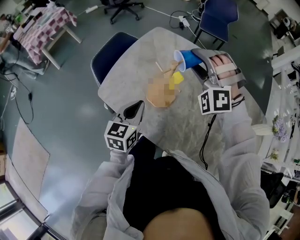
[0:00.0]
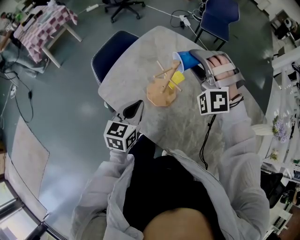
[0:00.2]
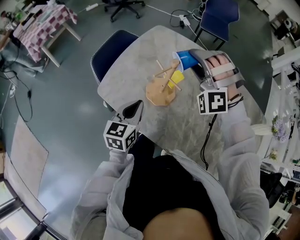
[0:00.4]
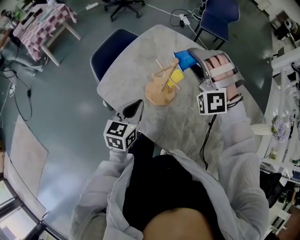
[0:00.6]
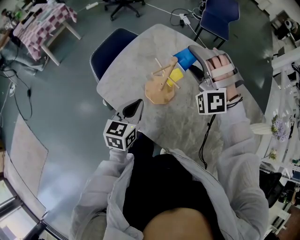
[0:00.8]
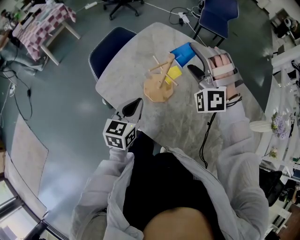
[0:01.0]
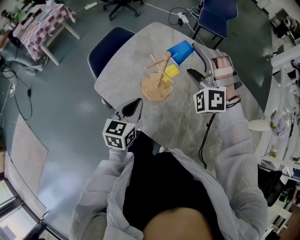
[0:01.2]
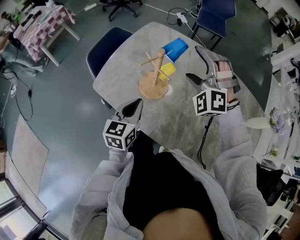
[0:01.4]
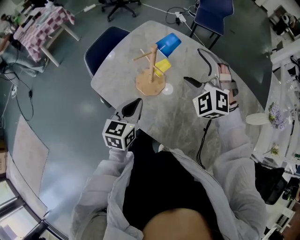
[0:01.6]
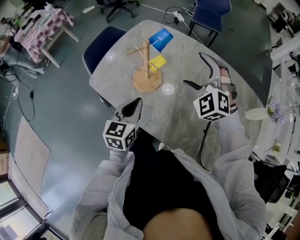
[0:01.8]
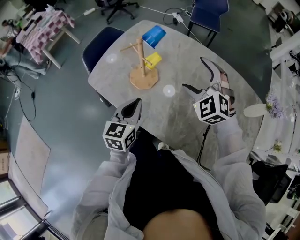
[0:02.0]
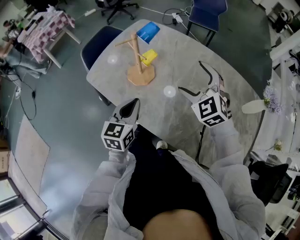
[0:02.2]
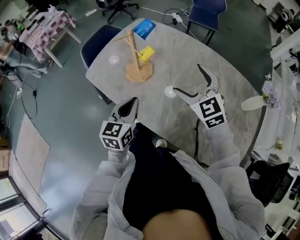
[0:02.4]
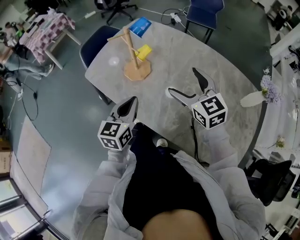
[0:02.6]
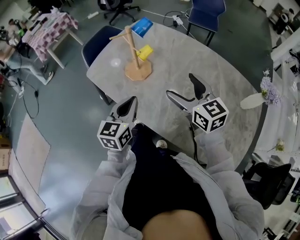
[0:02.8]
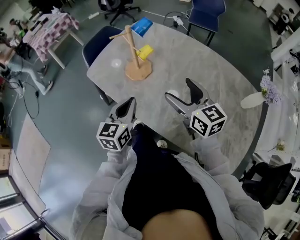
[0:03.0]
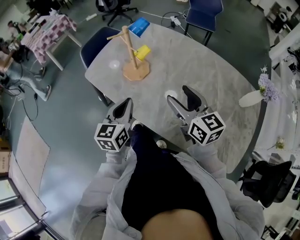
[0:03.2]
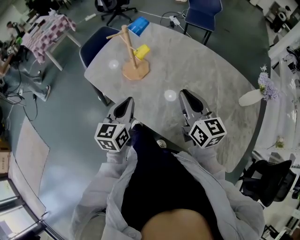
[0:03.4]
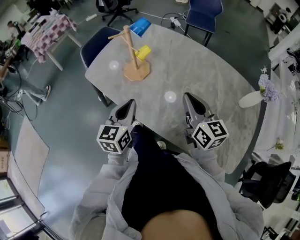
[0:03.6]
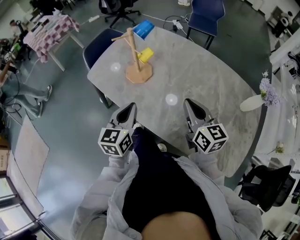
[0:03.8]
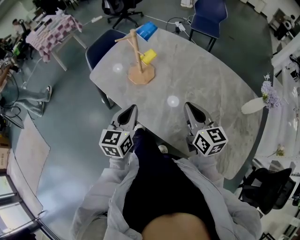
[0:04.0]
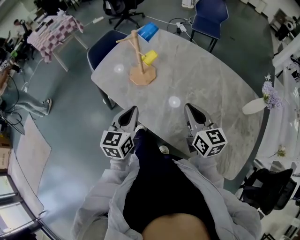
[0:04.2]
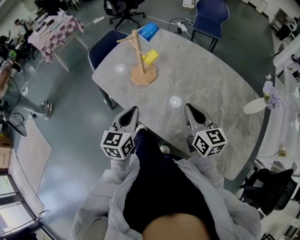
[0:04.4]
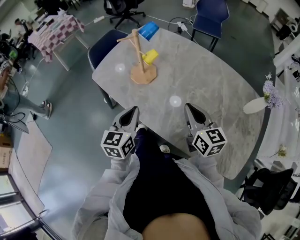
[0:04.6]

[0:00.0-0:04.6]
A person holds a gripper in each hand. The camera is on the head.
0:00.0 to 0:01.6: The left gripper heads to the right, covering about 5 cm, while the right gripper shifts about 10 cm to the right and backward, swivels approximately 30 degrees, and opens.
0:01.6 to 0:03.0: The left gripper moves backward and to the right, some 15 cm, while the right gripper travels backward by some 20 cm, and twists about 70 degrees clockwise, seen from behind.
0:03.0 to 0:04.6: The right gripper moves some 5 cm, and closes its fingers.

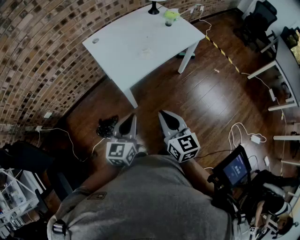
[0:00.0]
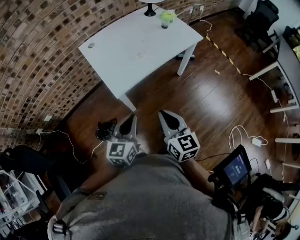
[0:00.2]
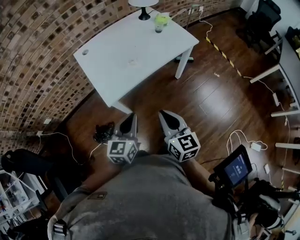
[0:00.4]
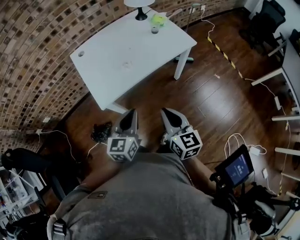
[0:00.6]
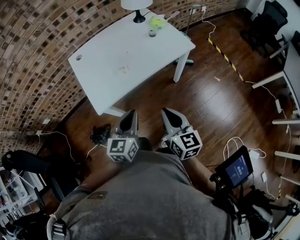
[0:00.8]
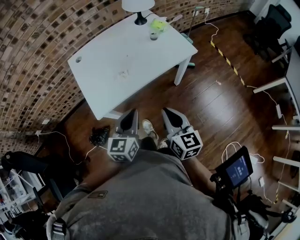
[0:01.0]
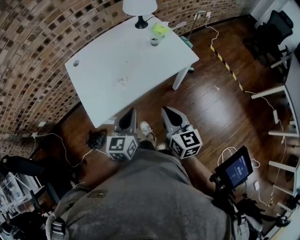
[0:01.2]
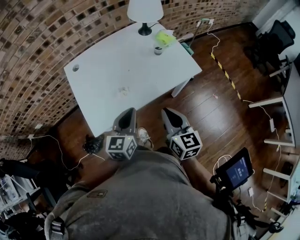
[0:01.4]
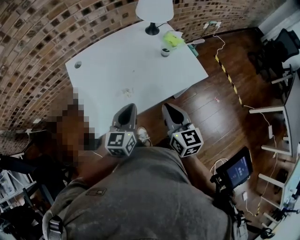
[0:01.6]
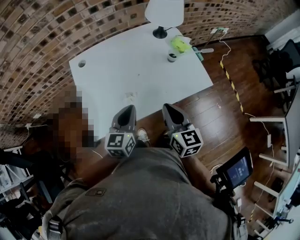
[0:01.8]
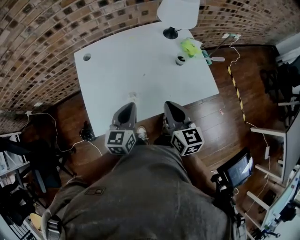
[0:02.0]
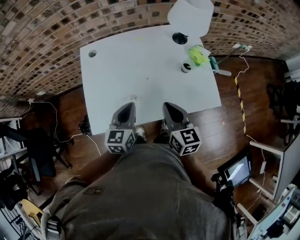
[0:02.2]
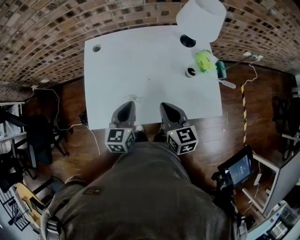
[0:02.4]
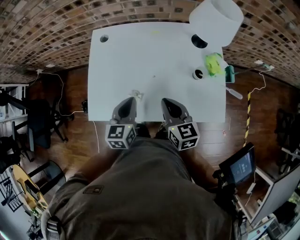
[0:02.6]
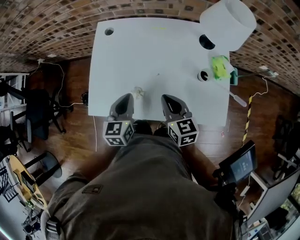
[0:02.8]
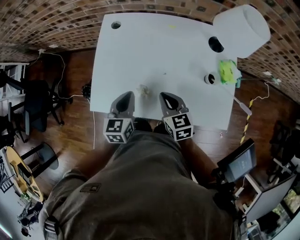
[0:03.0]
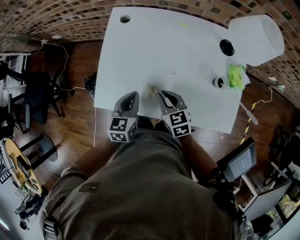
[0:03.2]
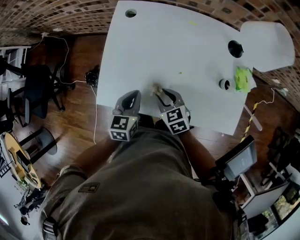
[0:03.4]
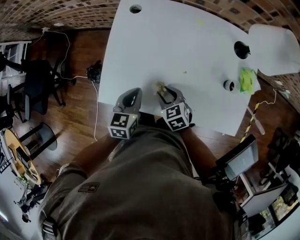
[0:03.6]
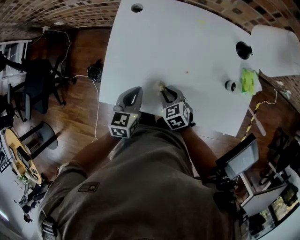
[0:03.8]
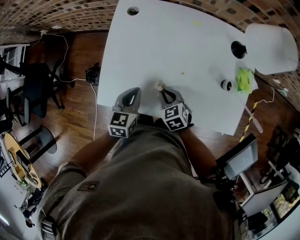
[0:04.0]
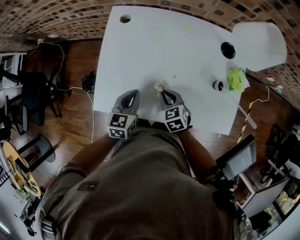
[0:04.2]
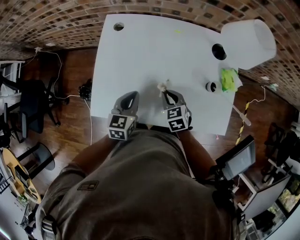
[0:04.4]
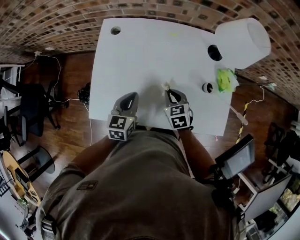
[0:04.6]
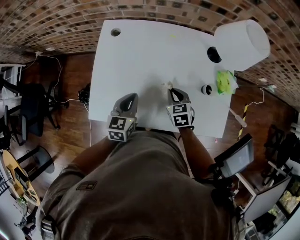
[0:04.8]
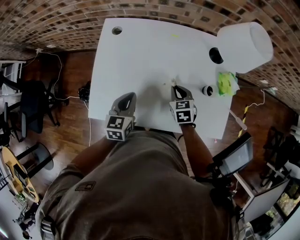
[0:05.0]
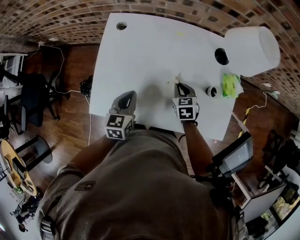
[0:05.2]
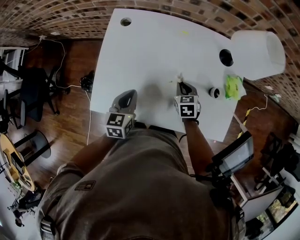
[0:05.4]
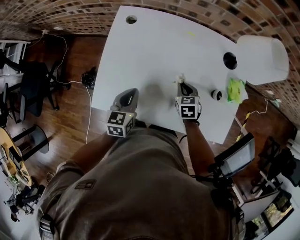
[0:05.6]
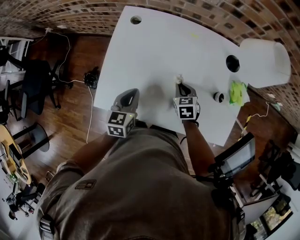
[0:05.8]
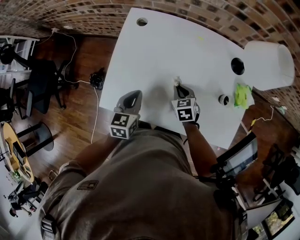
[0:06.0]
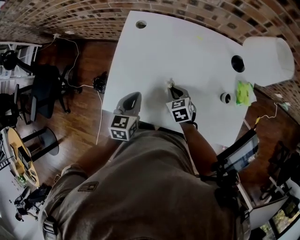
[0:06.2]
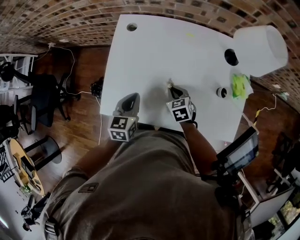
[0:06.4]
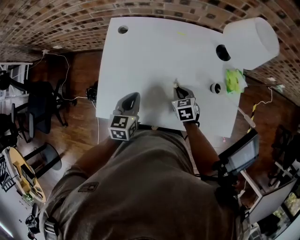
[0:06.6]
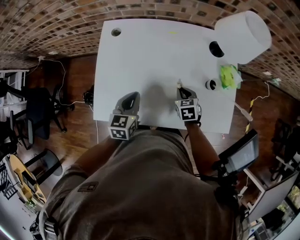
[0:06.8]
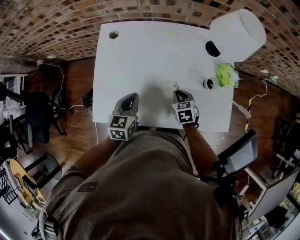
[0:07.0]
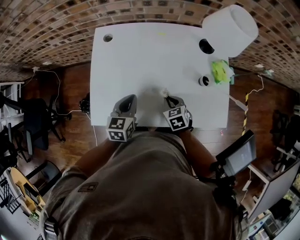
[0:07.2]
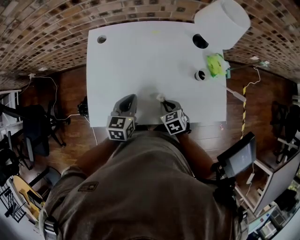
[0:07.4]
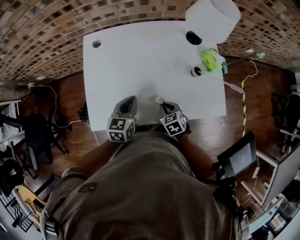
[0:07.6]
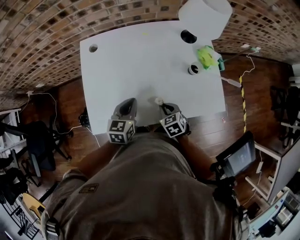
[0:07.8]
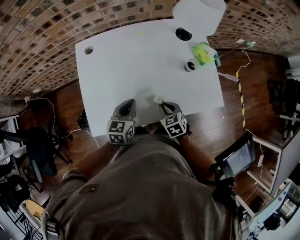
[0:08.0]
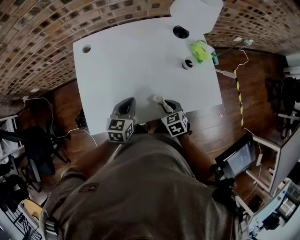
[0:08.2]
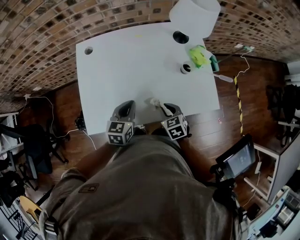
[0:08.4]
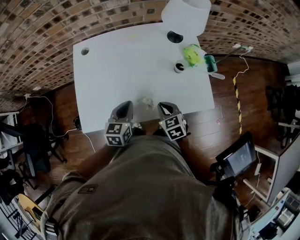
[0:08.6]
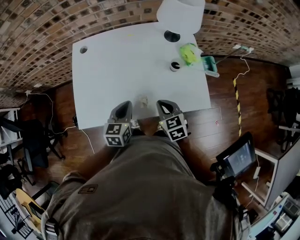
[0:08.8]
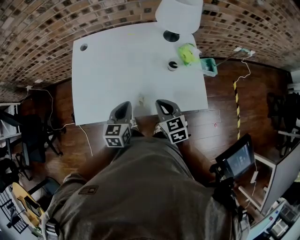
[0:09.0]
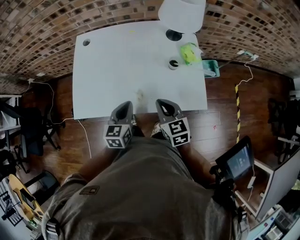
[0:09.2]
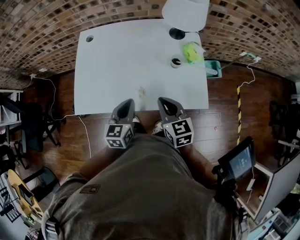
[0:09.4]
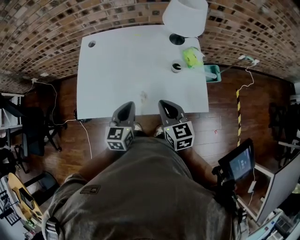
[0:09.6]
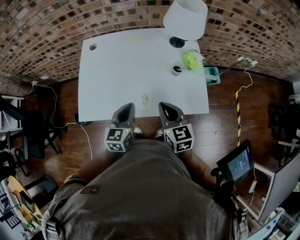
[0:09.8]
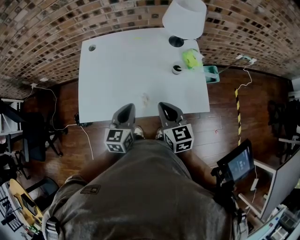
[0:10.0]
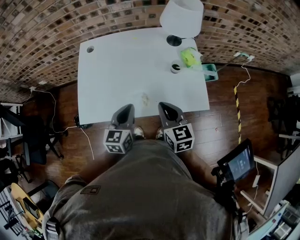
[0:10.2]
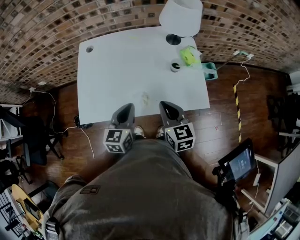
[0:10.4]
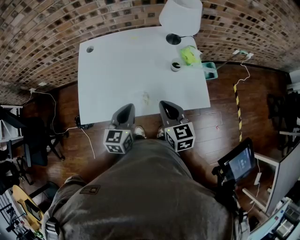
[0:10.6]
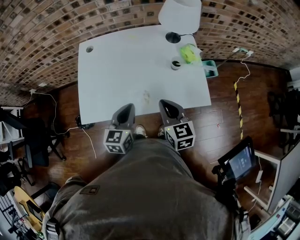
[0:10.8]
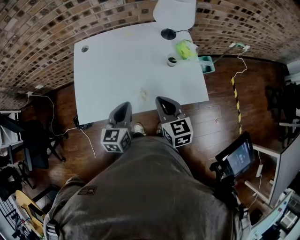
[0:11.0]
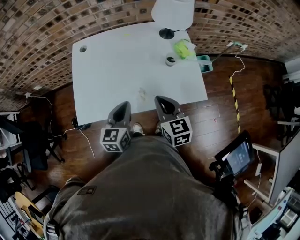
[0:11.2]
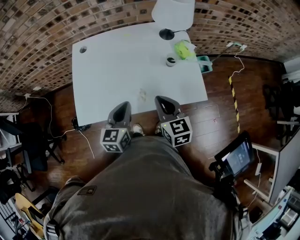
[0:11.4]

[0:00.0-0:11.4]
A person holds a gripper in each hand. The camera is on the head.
0:00.0 to 0:01.4: The two grippers go about 35 cm forward and to the right.
0:01.4 to 0:02.8: The right gripper shifts by some 25 cm, and rotates roughly 40 degrees, while the left gripper shifts by approximately 15 cm, and changes its angle by some 40 degrees.
0:02.8 to 0:04.2: The right gripper shifts some 15 cm downward and to the left, turns by roughly 30 degrees, and opens, then closes once more, while the left gripper goes roughly 5 cm downward.
0:04.2 to 0:05.6: The right gripper travels to the right and forward by roughly 10 cm.
0:05.6 to 0:07.2: The right gripper swings left and right, approximately 10 cm each way, with 2 reversals.
0:07.2 to 0:08.6: The right gripper heads backward, upward and to the right, covering roughly 10 cm, while the left gripper shifts some 5 cm to the right.
0:08.6 to 0:10.0: The right gripper is displaced upward by about 15 cm, and rotates about 20 degrees. Meanwhile the left gripper moves upward and backward, some 10 cm.
0:10.0 to 0:11.4: There are only small adjustments of the grippers.

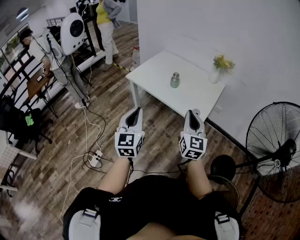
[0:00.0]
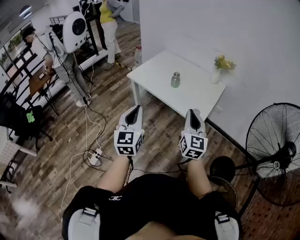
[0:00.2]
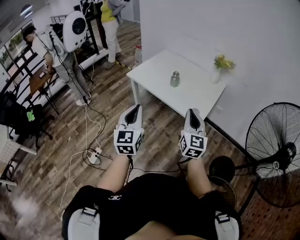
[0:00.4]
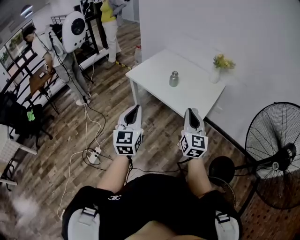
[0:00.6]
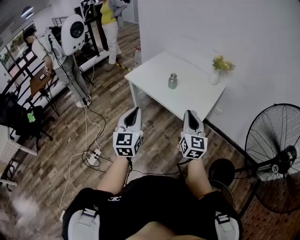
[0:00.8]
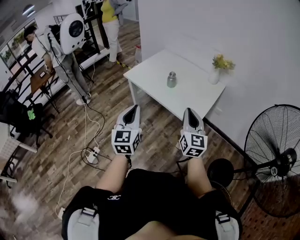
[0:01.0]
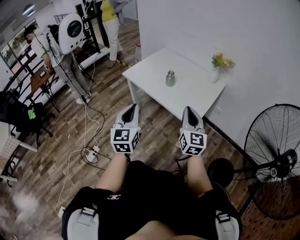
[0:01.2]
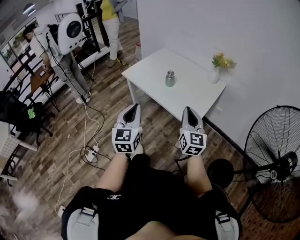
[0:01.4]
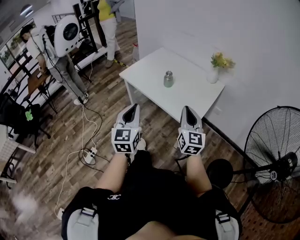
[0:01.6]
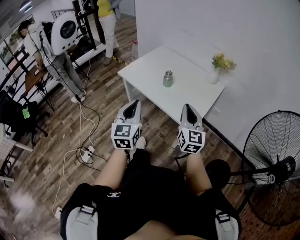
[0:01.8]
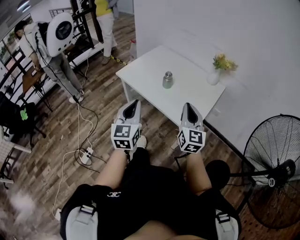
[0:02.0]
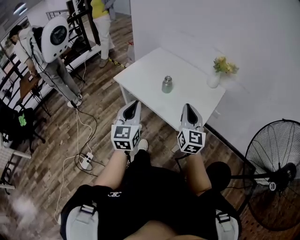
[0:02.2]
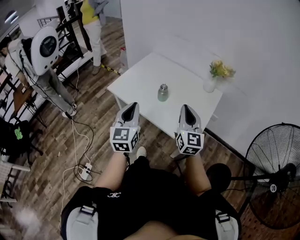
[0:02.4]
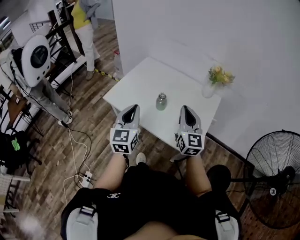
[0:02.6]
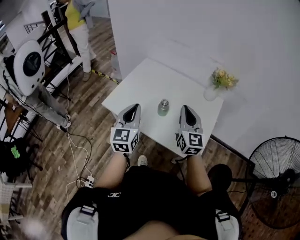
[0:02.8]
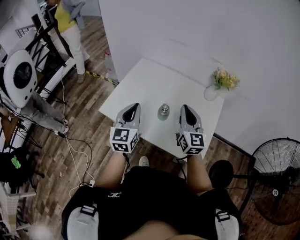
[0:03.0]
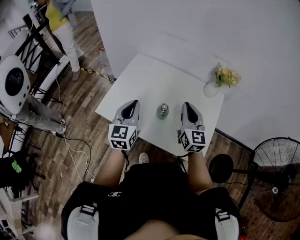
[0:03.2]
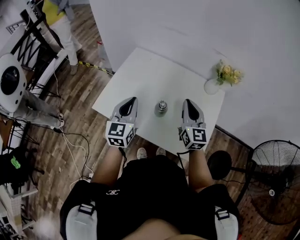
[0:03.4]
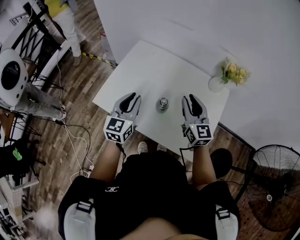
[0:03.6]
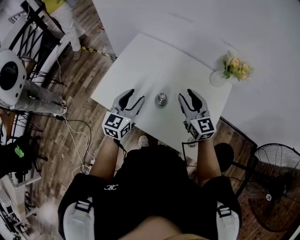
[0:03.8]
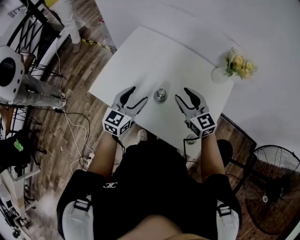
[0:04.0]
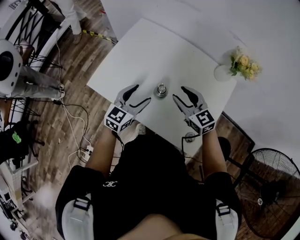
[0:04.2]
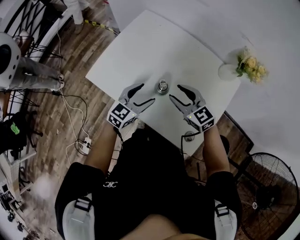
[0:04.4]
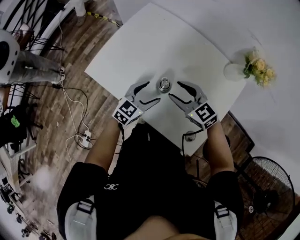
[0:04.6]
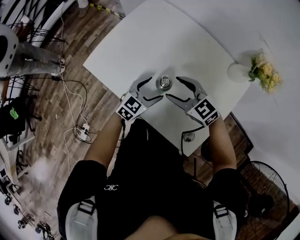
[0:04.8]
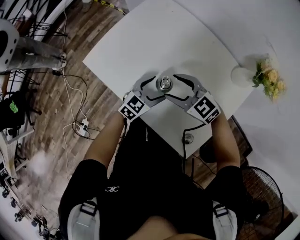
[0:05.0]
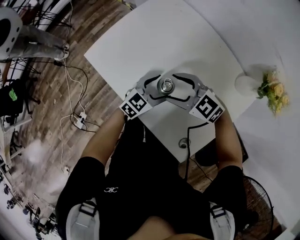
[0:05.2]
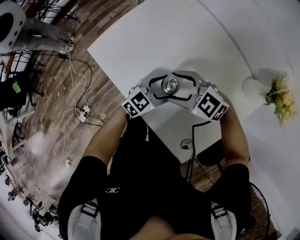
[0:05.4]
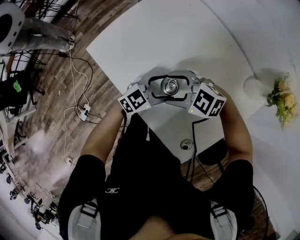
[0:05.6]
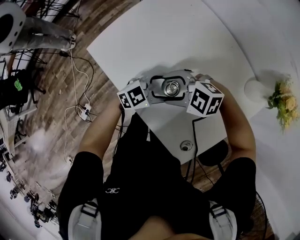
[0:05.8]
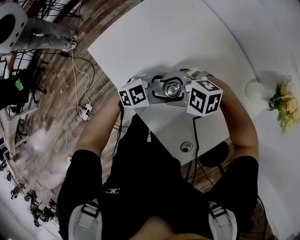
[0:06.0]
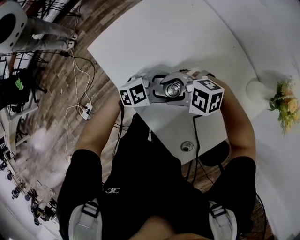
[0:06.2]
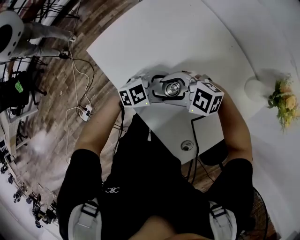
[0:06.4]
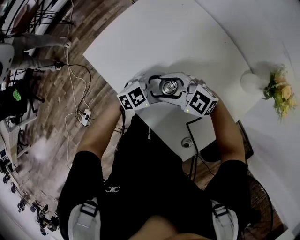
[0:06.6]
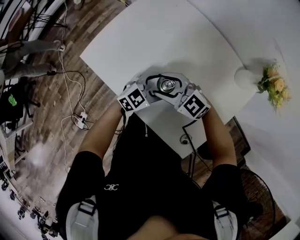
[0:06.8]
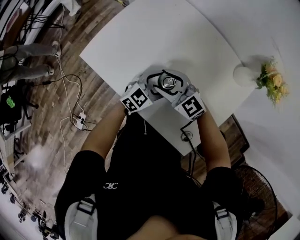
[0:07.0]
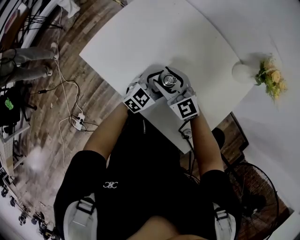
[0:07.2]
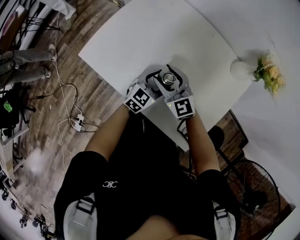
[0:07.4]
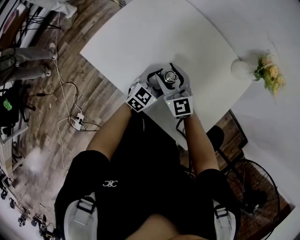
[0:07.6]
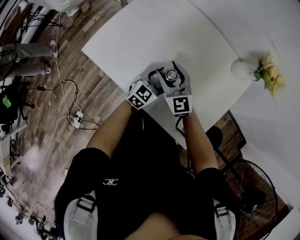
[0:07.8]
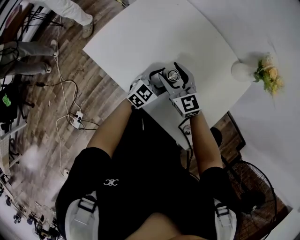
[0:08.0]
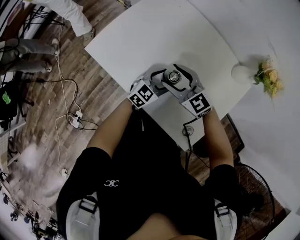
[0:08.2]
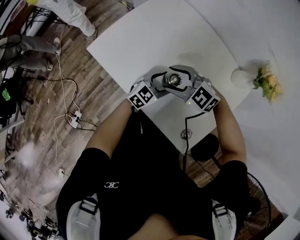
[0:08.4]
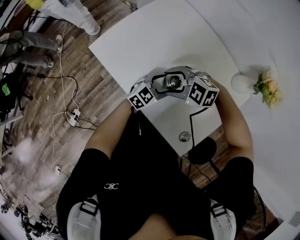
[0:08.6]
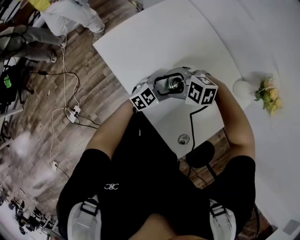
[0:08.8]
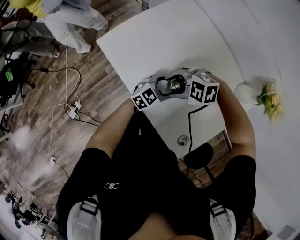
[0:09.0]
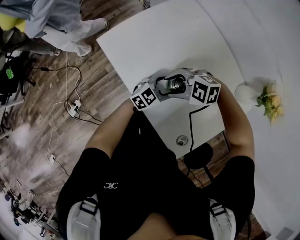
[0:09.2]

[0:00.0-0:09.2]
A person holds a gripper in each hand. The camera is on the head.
0:00.0 to 0:01.6: Both grippers move to the right and forward, approximately 10 cm.
0:01.6 to 0:03.0: Both grippers travel together forward, approximately 35 cm.
0:03.0 to 0:04.6: The left gripper goes roughly 25 cm downward and to the right, changes its angle by roughly 30 degrees, and opens up. Meanwhile the right gripper shifts some 20 cm downward and forward, turns by roughly 60 degrees, and opens its fingers.
0:04.6 to 0:06.2: The left gripper changes place by some 5 cm, and changes its angle by some 20 degrees. Meanwhile the right gripper shifts by roughly 5 cm, and turns by approximately 60 degrees.
0:06.2 to 0:07.6: The left gripper swivels some 20 degrees. The right gripper shifts by approximately 5 cm, and changes its angle by about 80 degrees.
0:07.6 to 0:09.2: The right gripper ends up about 5 cm from where it was, and tips its fingers downward by about 30 degrees.
